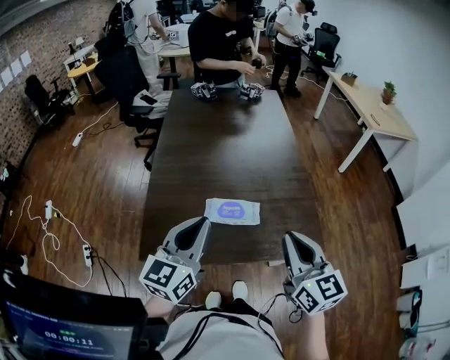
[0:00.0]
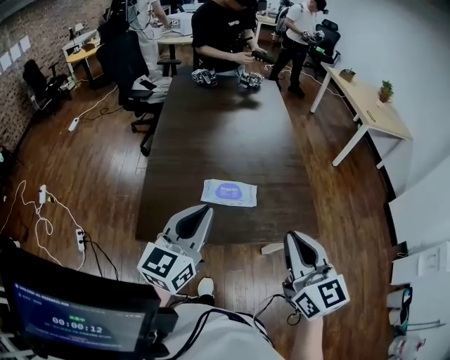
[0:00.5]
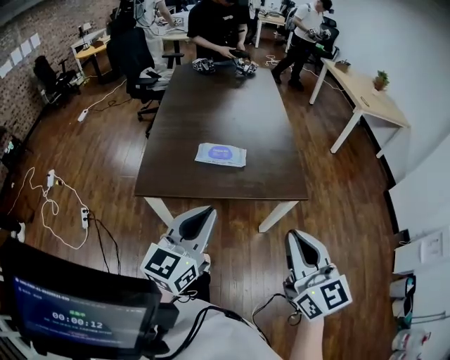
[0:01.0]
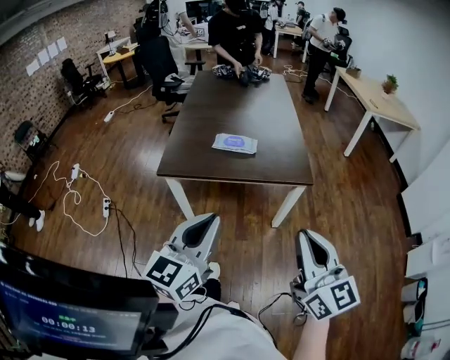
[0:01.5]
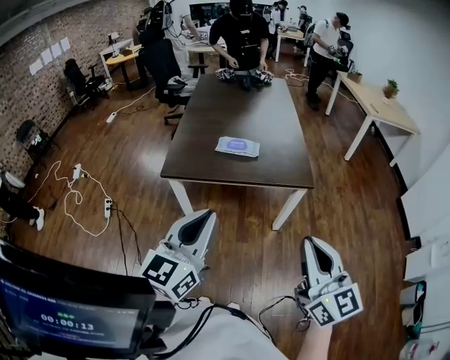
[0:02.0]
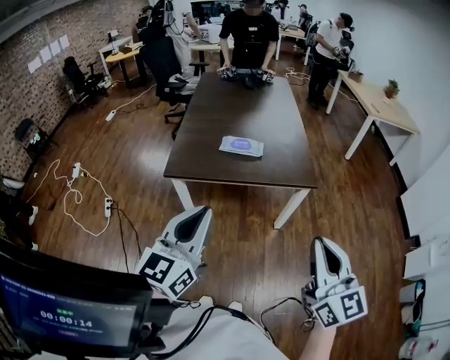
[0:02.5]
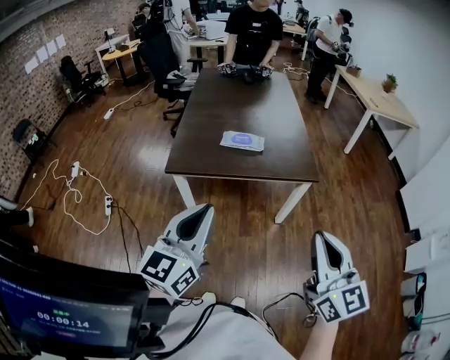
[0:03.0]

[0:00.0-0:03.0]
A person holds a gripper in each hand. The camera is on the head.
0:00.0 to 0:01.5: Both grippers are carried backward, some 40 cm.
0:01.5 to 0:03.0: The left gripper shifts roughly 5 cm to the left.

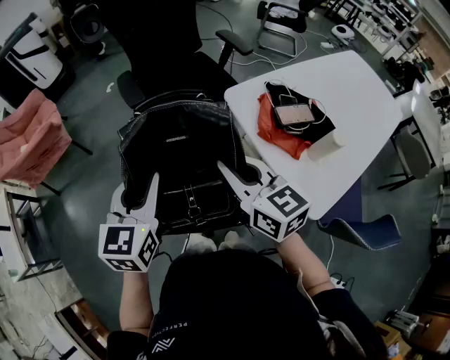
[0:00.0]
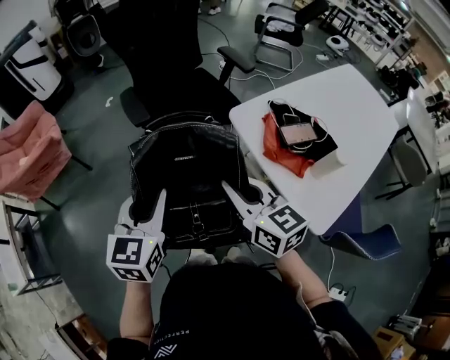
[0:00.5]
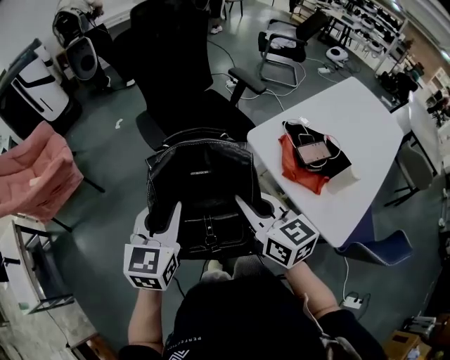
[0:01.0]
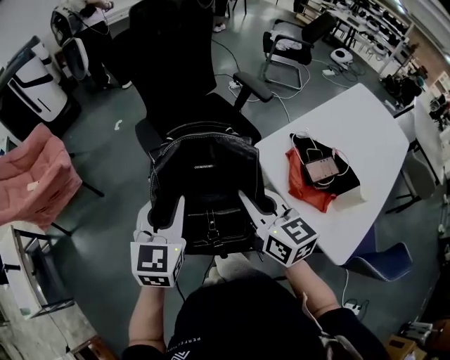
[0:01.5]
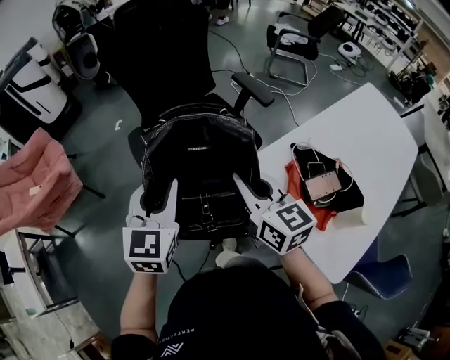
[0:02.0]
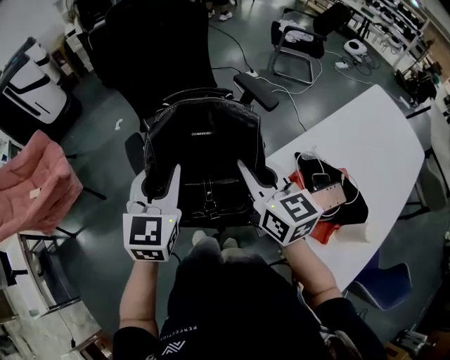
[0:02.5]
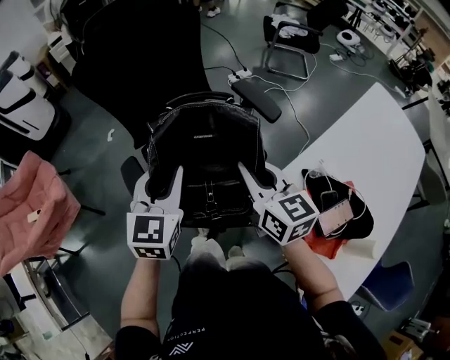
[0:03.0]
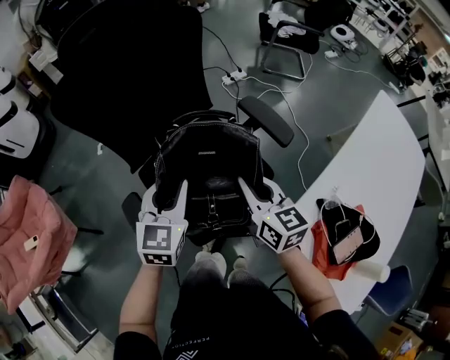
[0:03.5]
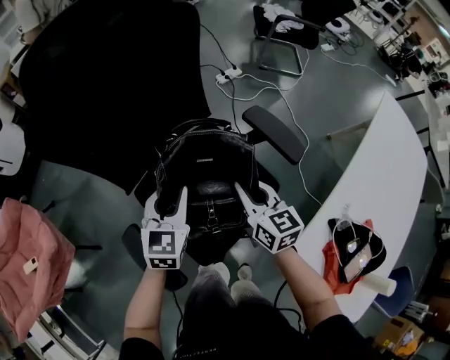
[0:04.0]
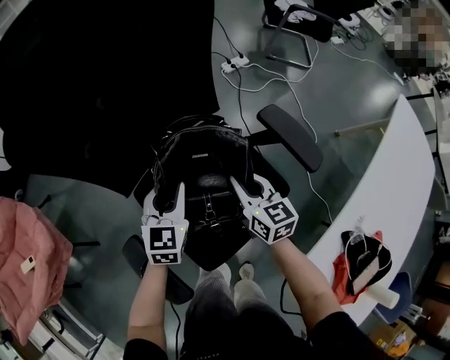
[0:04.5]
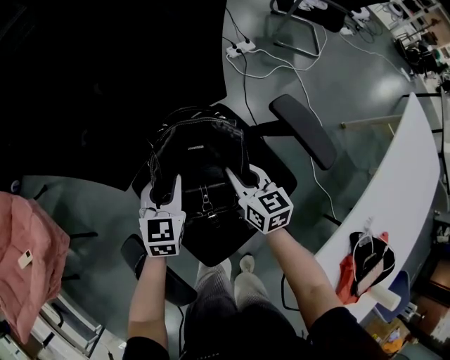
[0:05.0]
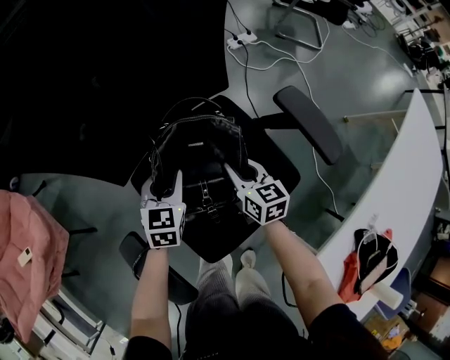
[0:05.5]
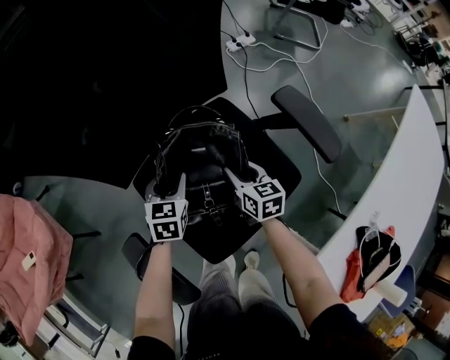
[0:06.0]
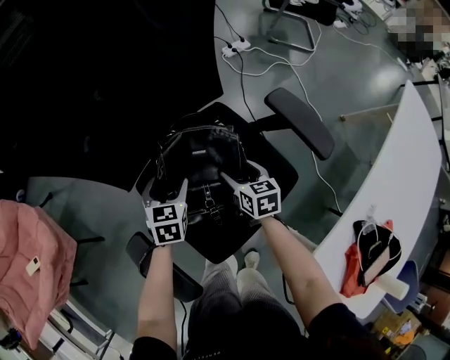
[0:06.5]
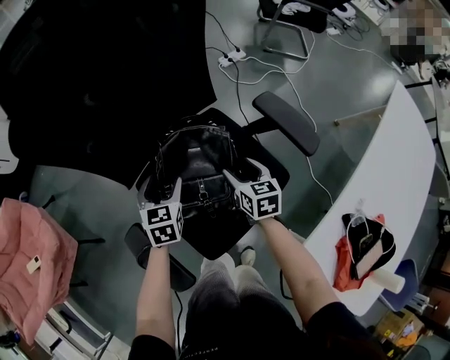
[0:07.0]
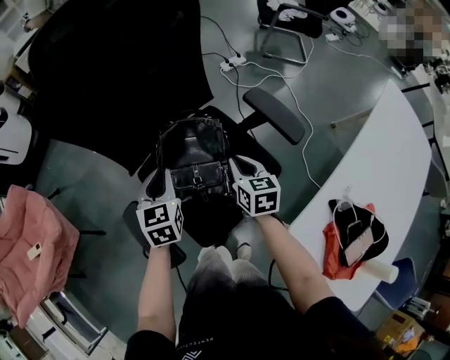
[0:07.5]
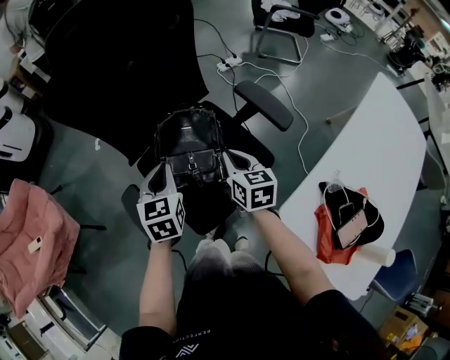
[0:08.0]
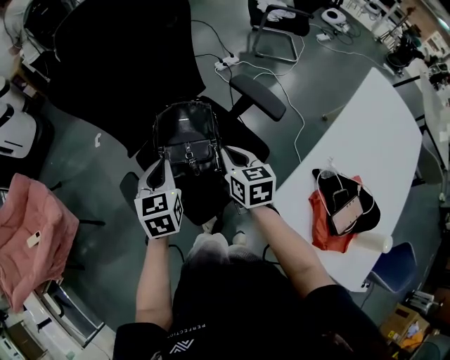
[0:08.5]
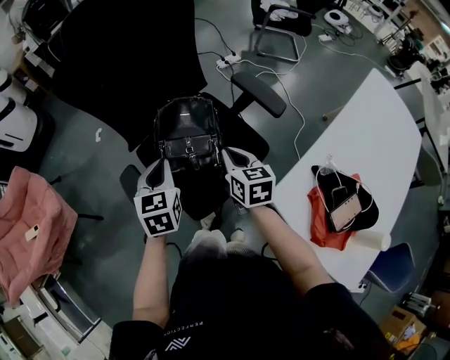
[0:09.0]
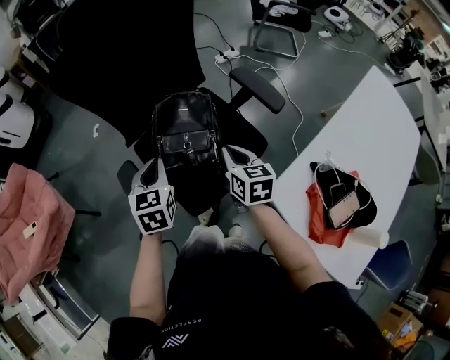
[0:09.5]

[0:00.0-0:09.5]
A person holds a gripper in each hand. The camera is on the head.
0:00.0 to 0:02.0: The grippers both shift forward by roughly 25 cm.
0:02.0 to 0:04.0: The grippers both shift forward and downward by roughly 40 cm.
0:04.0 to 0:05.5: The left gripper heads downward, covering roughly 15 cm, while the right gripper travels downward and forward by approximately 20 cm.
0:05.5 to 0:07.5: The two grippers go roughly 15 cm upward and backward. The left gripper opens, then closes again. Meanwhile the right gripper opens, then closes again.
0:07.5 to 0:09.5: The right gripper heads backward and upward, covering some 10 cm, while the left gripper shifts approximately 10 cm backward.

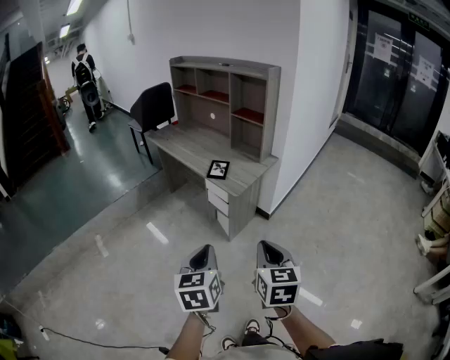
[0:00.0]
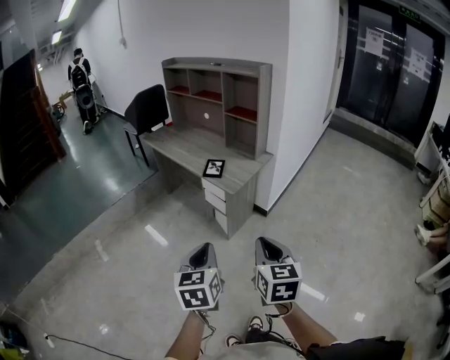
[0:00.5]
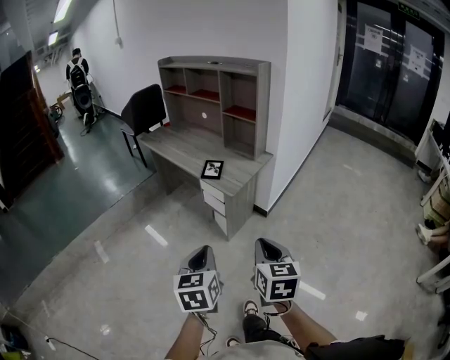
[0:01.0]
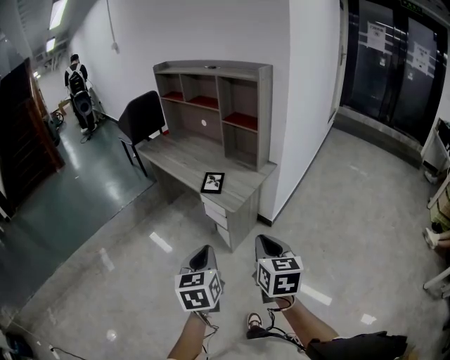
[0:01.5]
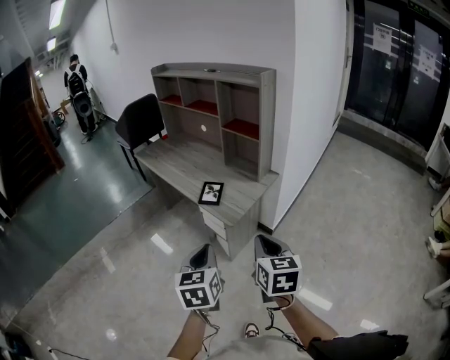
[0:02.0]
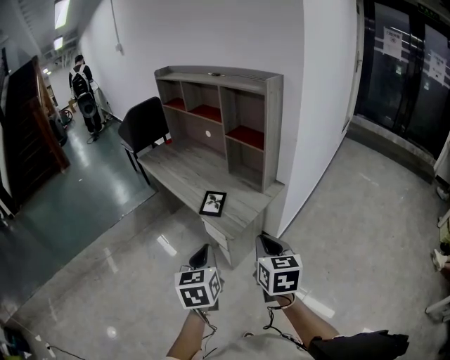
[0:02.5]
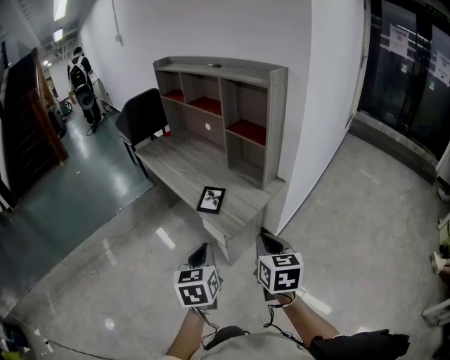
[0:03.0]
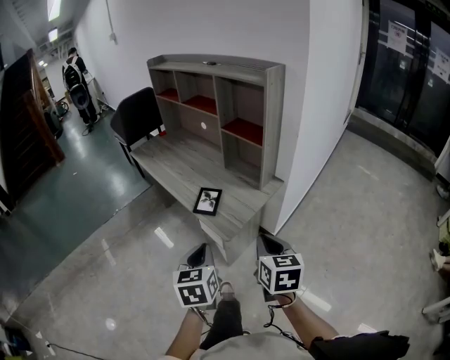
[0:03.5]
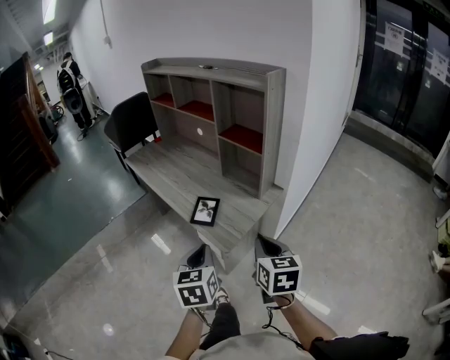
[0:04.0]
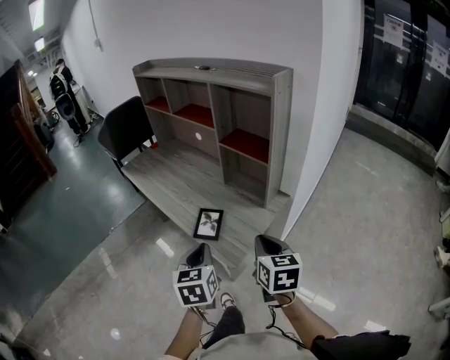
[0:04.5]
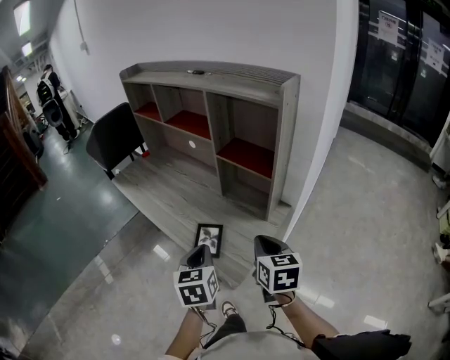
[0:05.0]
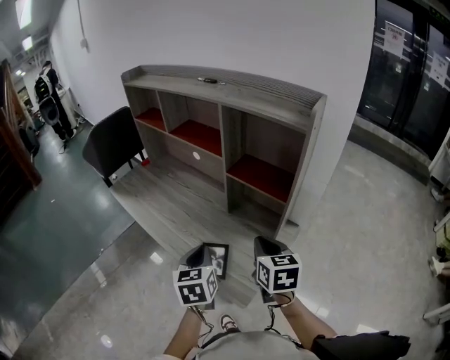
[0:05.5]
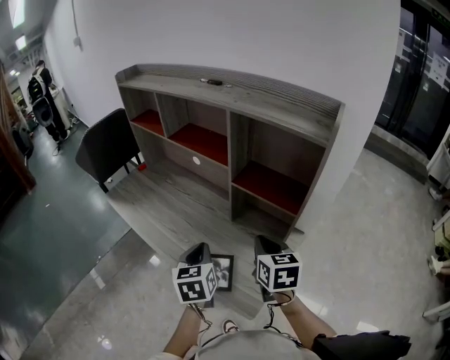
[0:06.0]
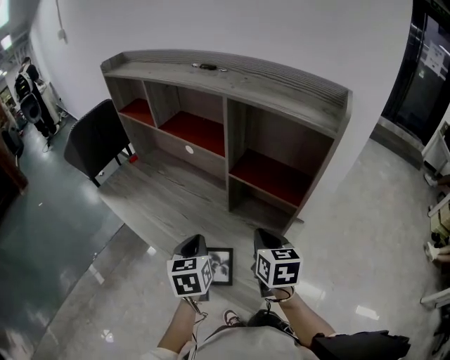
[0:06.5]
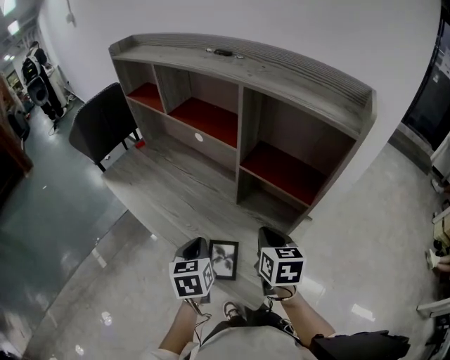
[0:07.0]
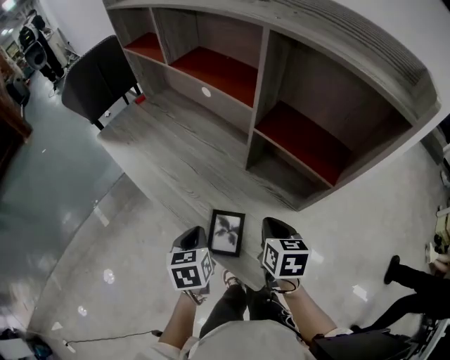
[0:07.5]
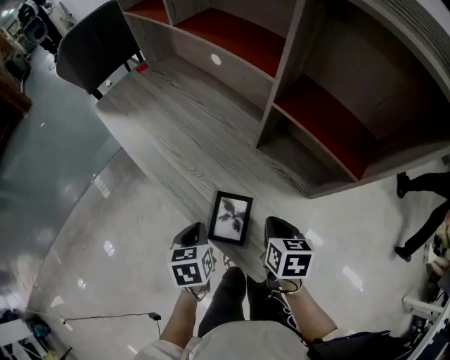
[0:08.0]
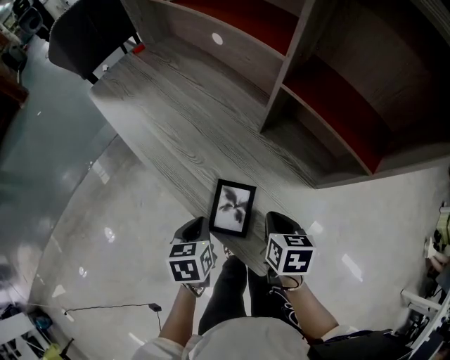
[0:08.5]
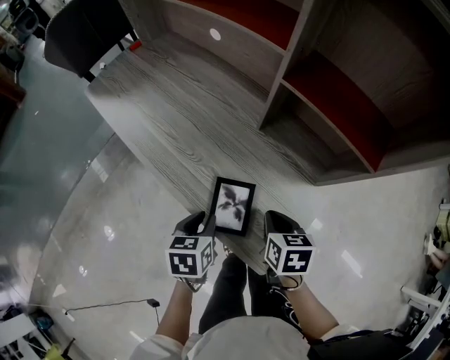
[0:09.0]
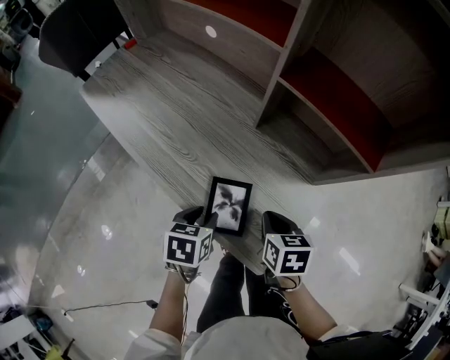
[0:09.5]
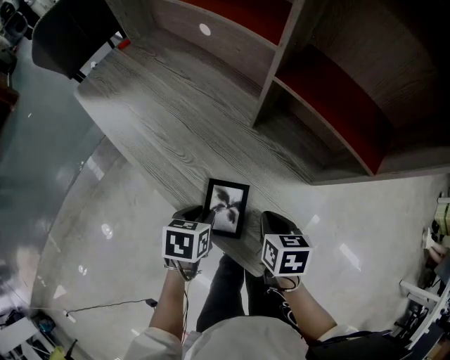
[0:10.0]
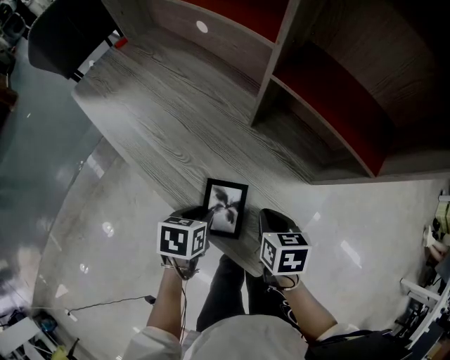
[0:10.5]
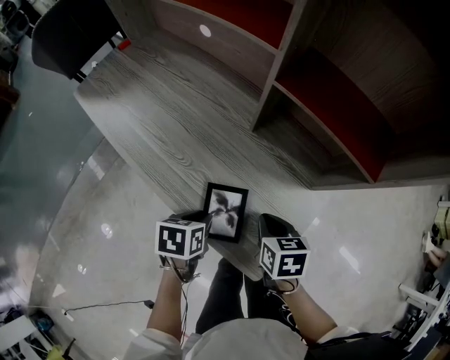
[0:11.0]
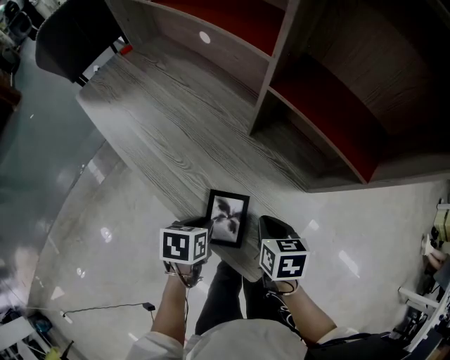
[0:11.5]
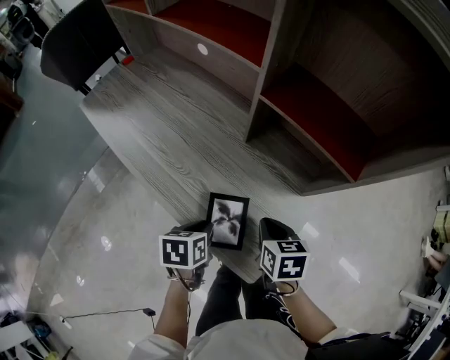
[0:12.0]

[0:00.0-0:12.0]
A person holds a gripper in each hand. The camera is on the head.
0:00.0 to 0:02.0: The two grippers go some 20 cm forward.
0:02.0 to 0:04.0: The two grippers go some 15 cm forward.
0:04.0 to 0:06.0: The two grippers go approximately 30 cm forward.
0:06.0 to 0:08.0: Both grippers travel together downward, some 20 cm. The right gripper swivels approximately 20 degrees. Meanwhile the left gripper swivels some 30 degrees.
0:08.0 to 0:10.0: Both grippers move downward, roughly 5 cm. The left gripper turns by approximately 20 degrees, and opens up.
0:10.0 to 0:12.0: The grippers make only small movements.

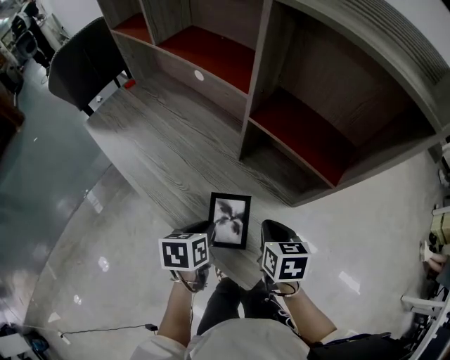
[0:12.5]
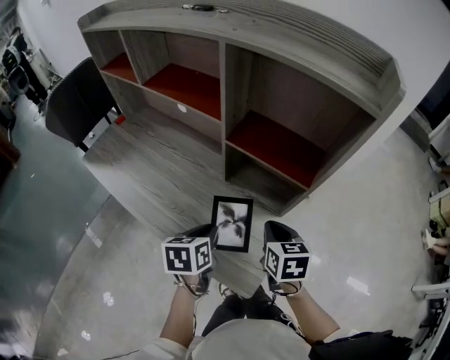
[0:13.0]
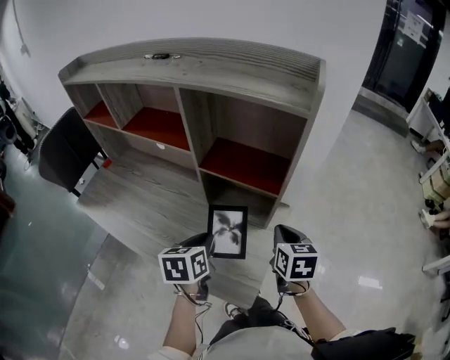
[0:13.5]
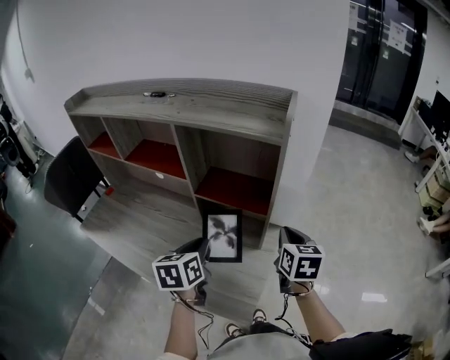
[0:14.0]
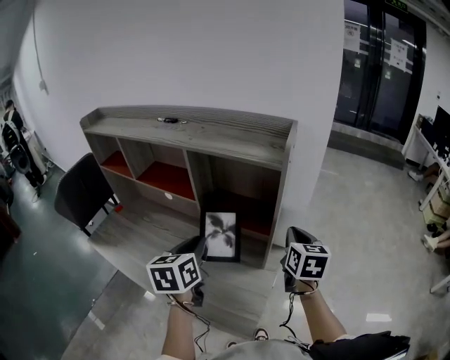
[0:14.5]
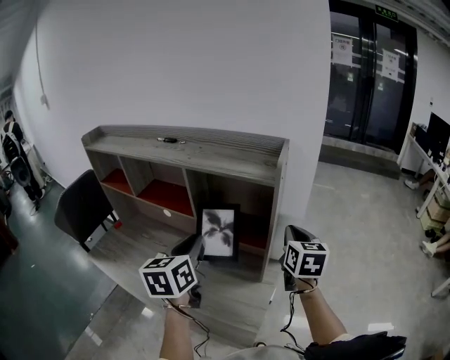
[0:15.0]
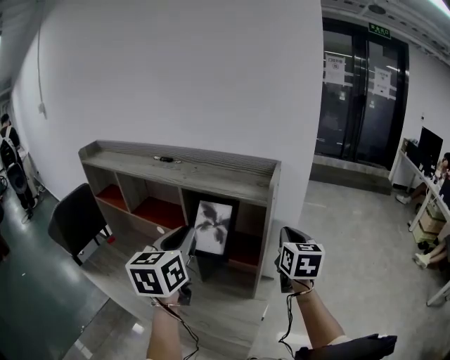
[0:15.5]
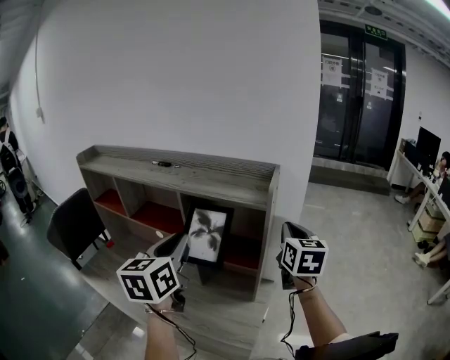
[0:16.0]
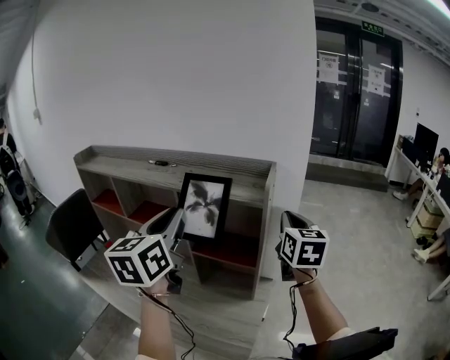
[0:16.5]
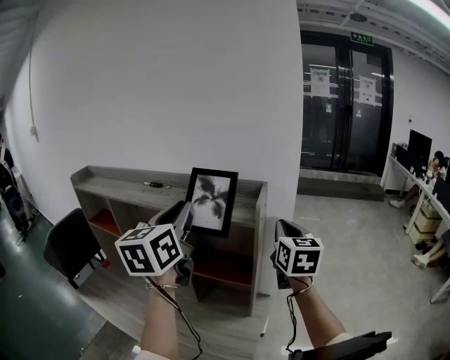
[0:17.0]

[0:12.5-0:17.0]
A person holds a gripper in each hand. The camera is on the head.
0:12.5 to 0:14.5: The right gripper moves upward and to the right, about 30 cm, and rotates some 40 degrees. The left gripper is displaced upward by about 25 cm, and swivels some 30 degrees.
0:14.5 to 0:17.0: Both grippers travel together upward, approximately 25 cm. The left gripper changes its angle by approximately 30 degrees.
